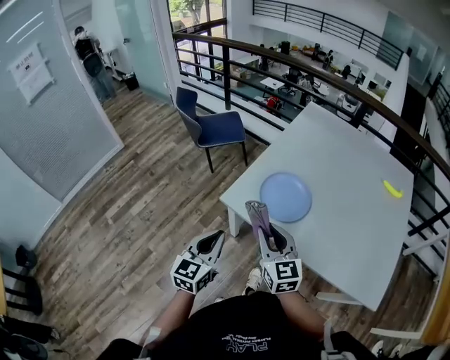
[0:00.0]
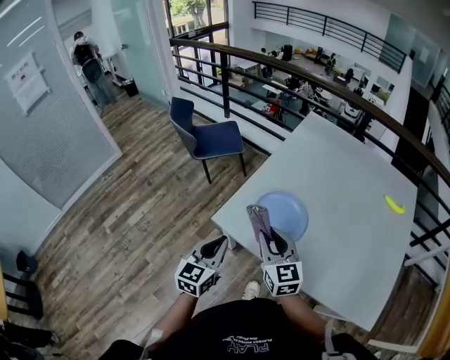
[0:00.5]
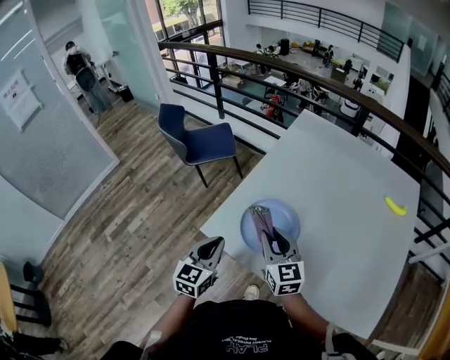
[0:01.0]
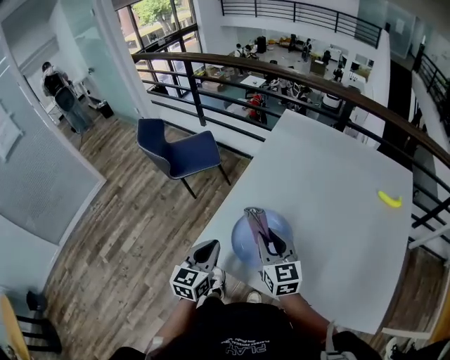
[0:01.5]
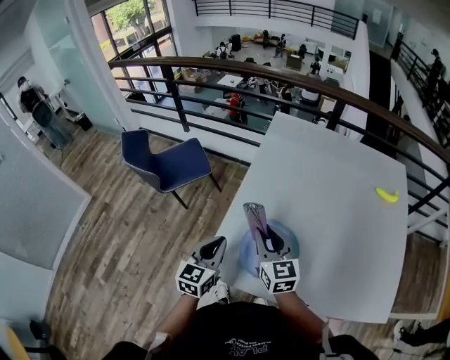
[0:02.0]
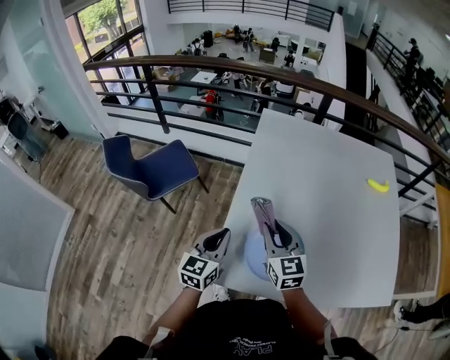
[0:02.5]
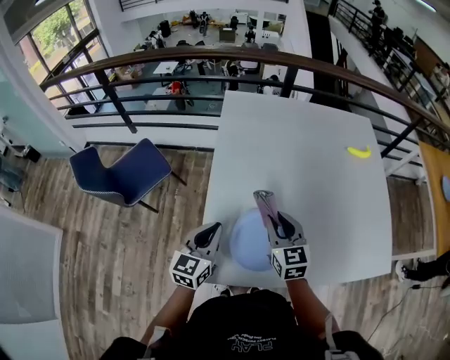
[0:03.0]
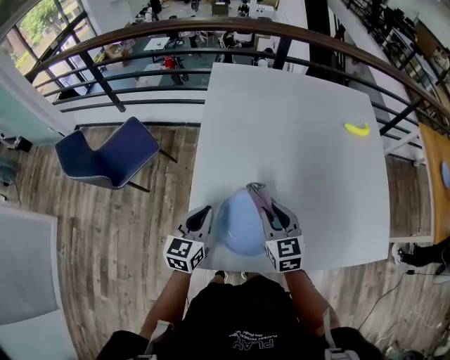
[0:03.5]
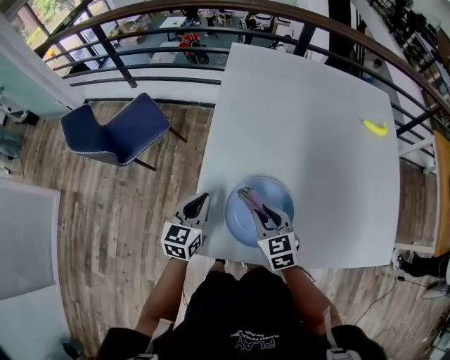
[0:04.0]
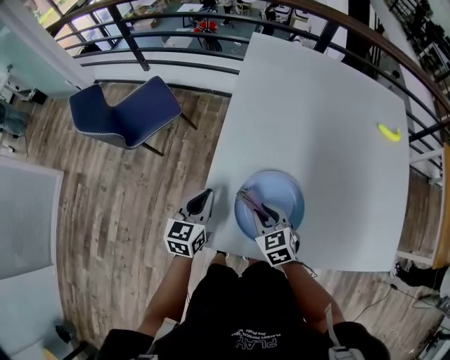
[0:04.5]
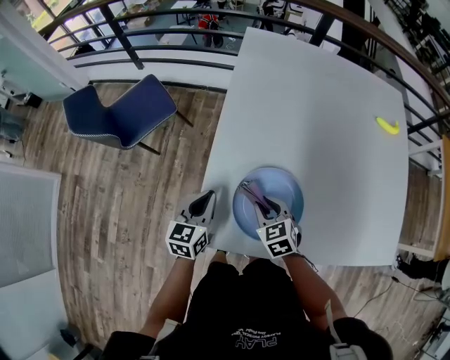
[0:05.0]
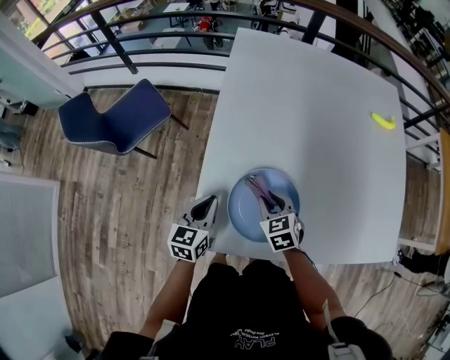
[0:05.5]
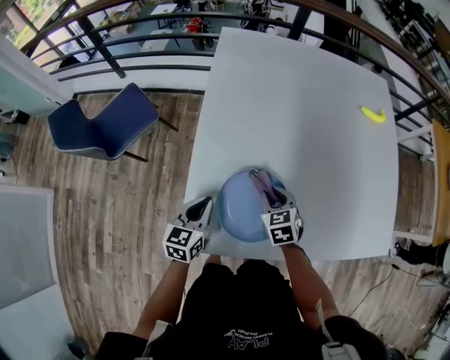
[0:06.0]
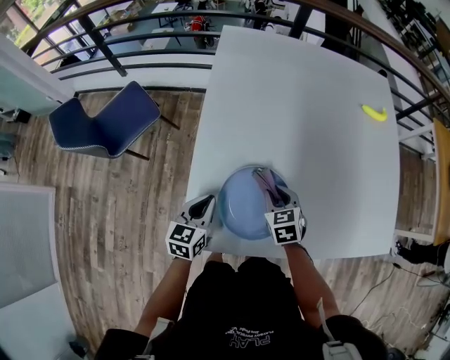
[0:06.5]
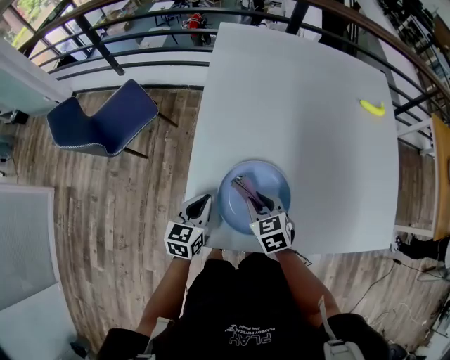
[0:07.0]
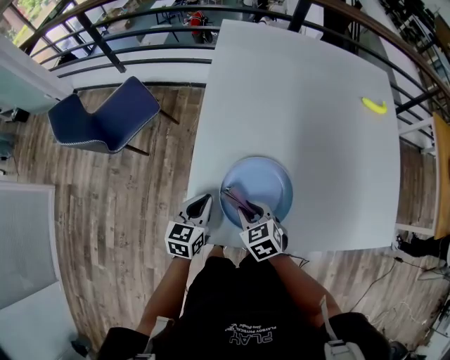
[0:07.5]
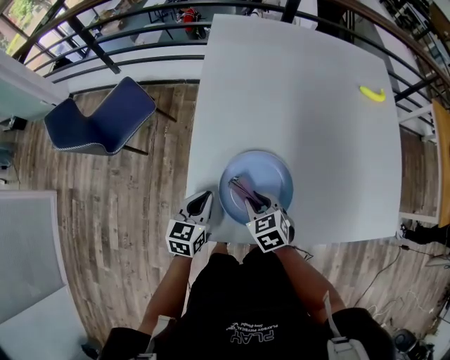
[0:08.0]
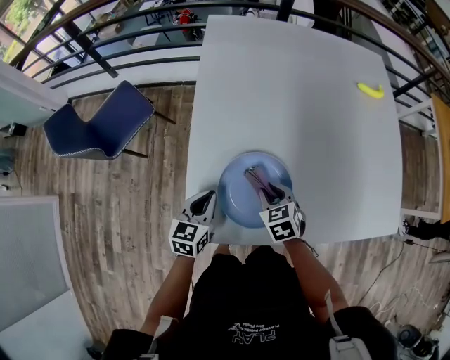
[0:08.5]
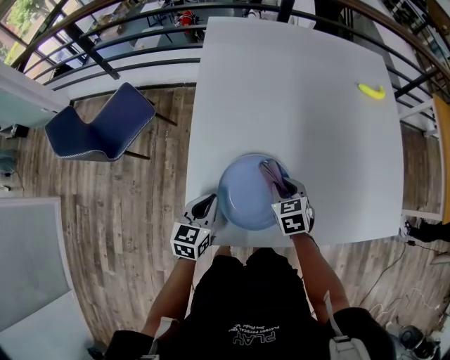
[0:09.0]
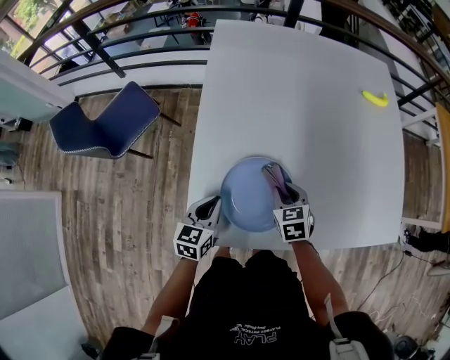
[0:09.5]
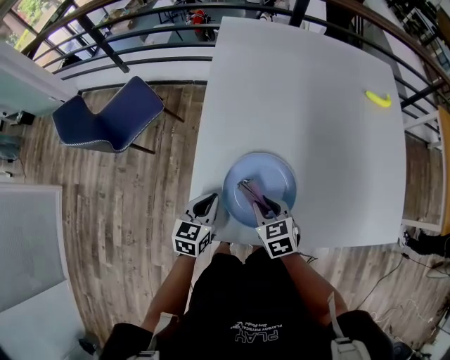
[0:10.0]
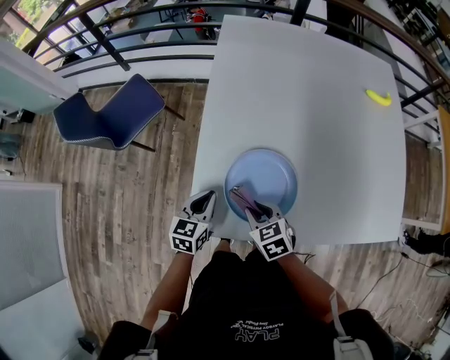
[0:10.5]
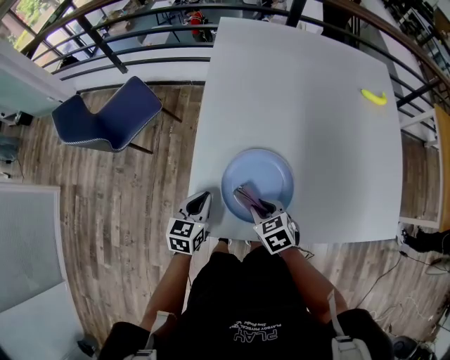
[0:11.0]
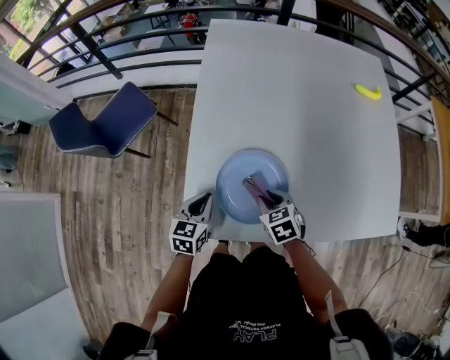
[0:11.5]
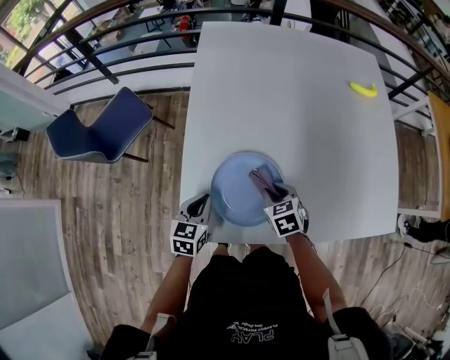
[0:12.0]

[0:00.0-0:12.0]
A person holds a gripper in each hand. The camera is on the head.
0:00.0 to 0:02.0: The two grippers go some 30 cm forward.
0:02.0 to 0:04.0: The right gripper moves downward, about 15 cm, and rotates roughly 30 degrees. Meanwhile the left gripper travels forward and downward by roughly 15 cm.
0:04.0 to 0:06.0: The left gripper ends up some 5 cm from where it was. Meanwhile the right gripper is displaced downward and to the right by about 10 cm.
0:06.0 to 0:08.0: The right gripper moves backward and to the left, about 10 cm.
0:08.0 to 0:10.0: The right gripper goes to the right and returns, roughly 10 cm each way.
0:10.0 to 0:12.0: The right gripper heads to the right, covering some 10 cm.

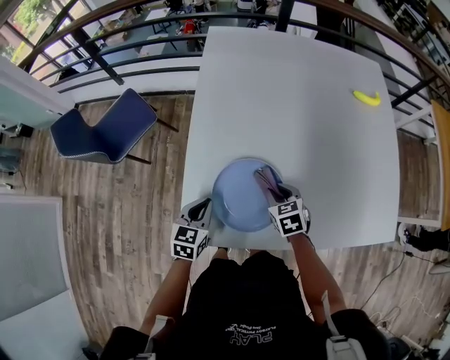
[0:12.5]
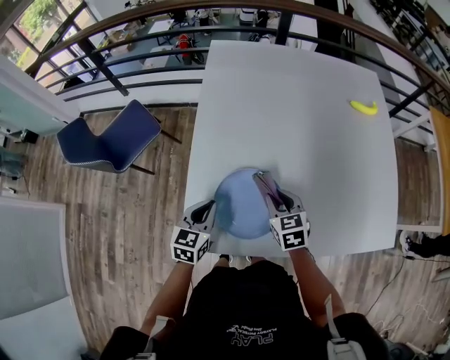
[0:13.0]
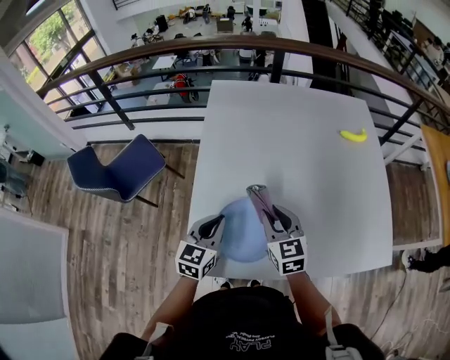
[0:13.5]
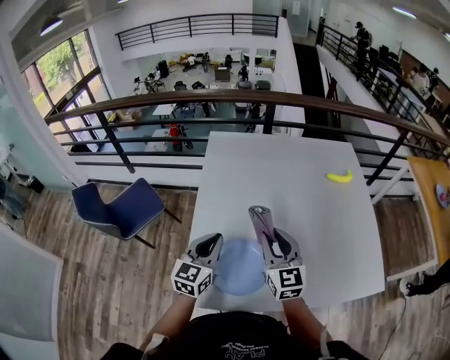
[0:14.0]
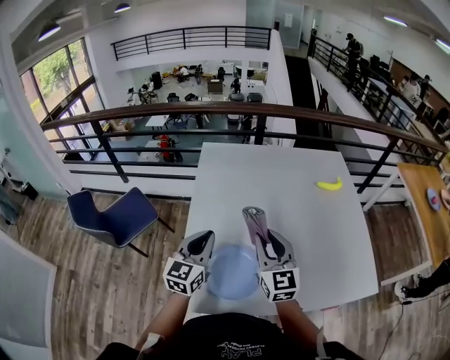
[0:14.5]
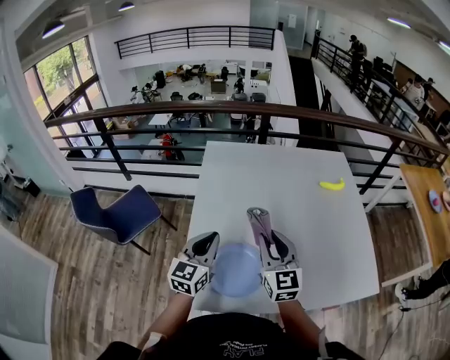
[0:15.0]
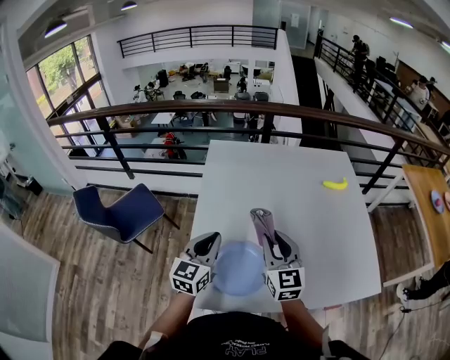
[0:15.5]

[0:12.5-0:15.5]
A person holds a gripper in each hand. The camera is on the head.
0:12.5 to 0:14.0: The grippers both shift upward by about 25 cm. The right gripper points its fingers some 50 degrees further upward. The left gripper turns by approximately 30 degrees.
0:14.0 to 0:15.5: The grippers make only small movements.

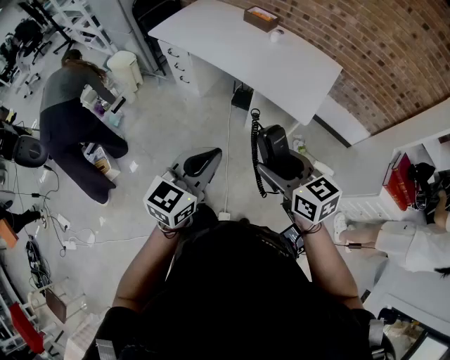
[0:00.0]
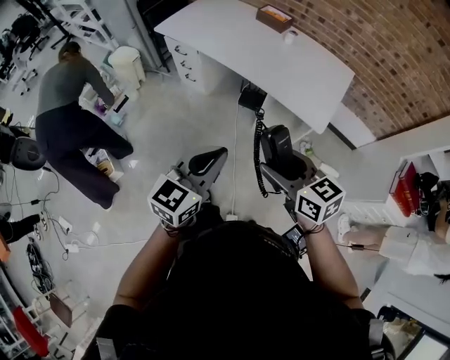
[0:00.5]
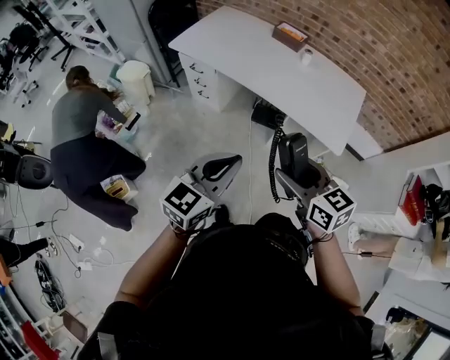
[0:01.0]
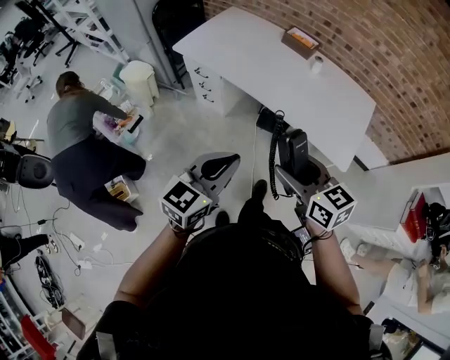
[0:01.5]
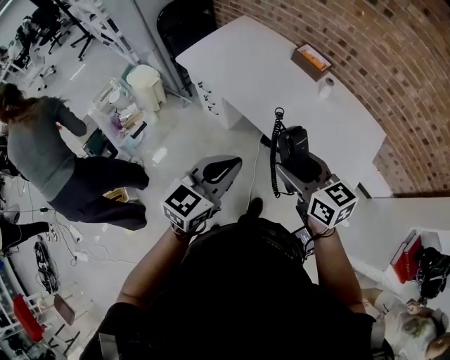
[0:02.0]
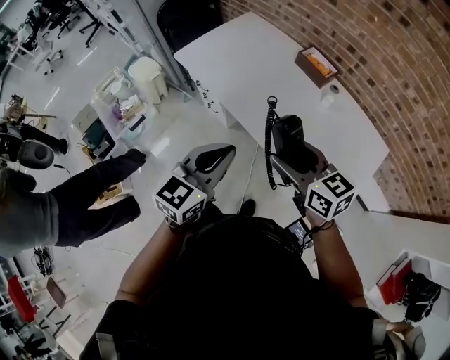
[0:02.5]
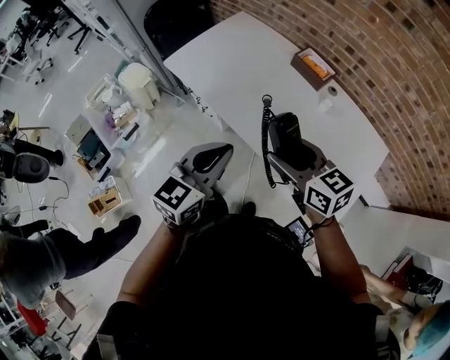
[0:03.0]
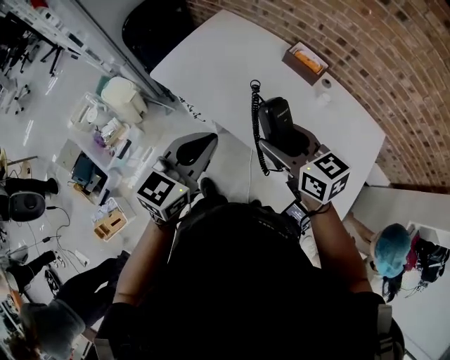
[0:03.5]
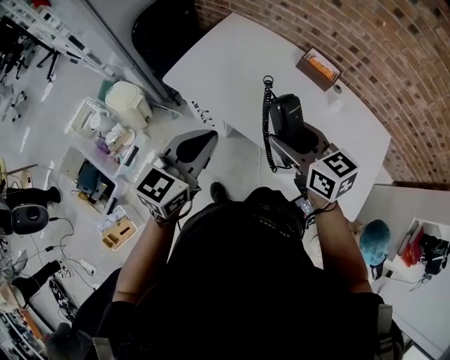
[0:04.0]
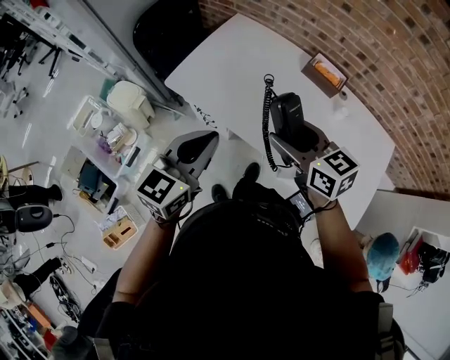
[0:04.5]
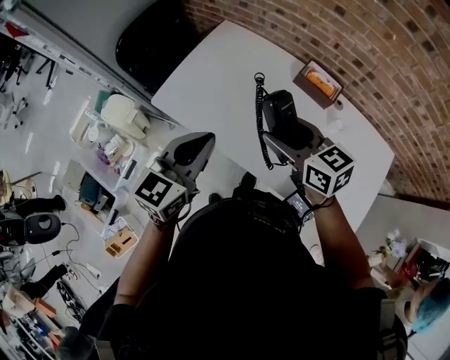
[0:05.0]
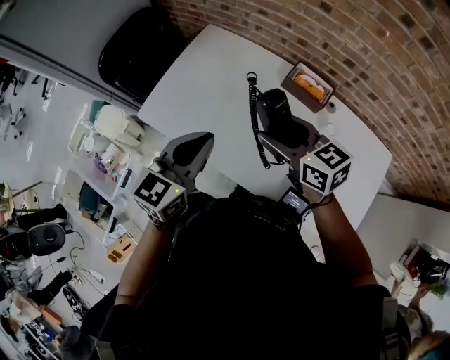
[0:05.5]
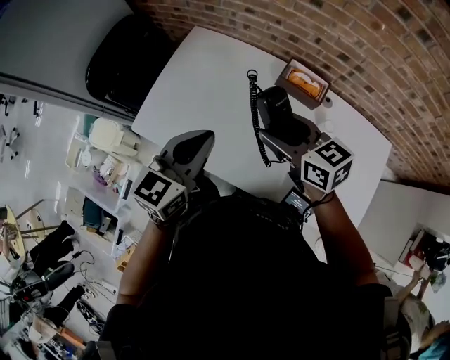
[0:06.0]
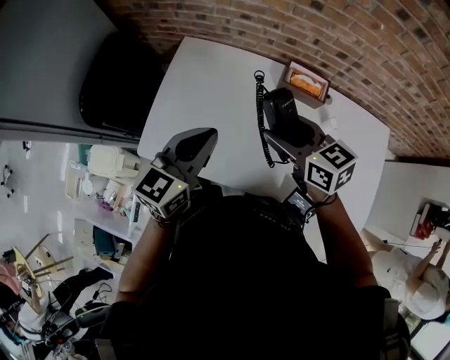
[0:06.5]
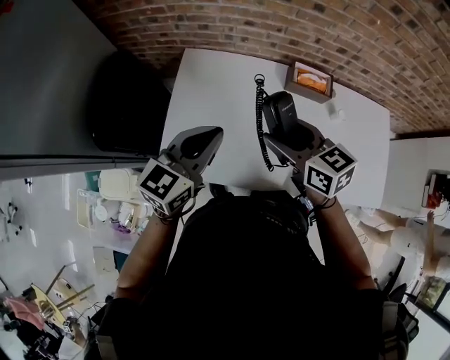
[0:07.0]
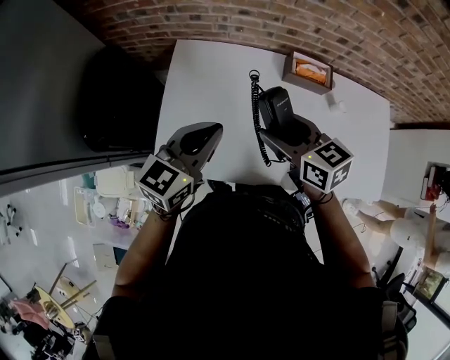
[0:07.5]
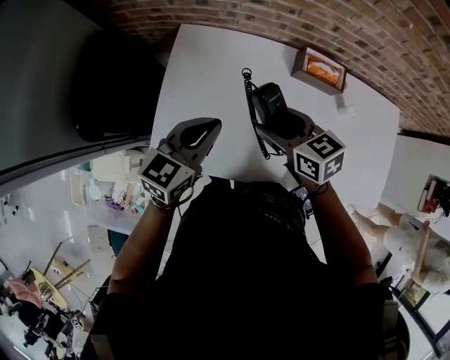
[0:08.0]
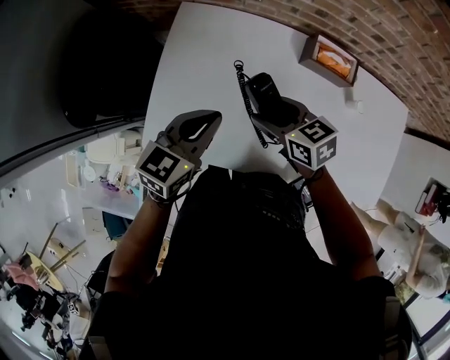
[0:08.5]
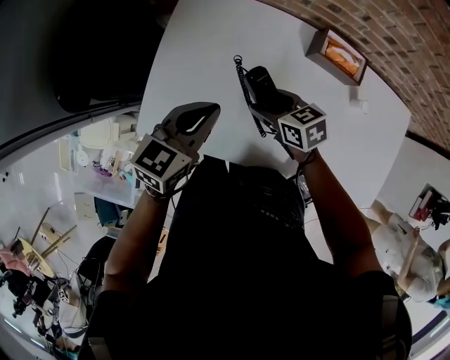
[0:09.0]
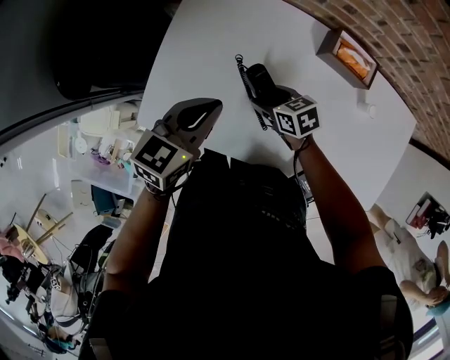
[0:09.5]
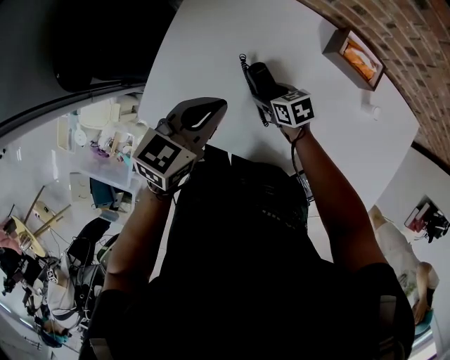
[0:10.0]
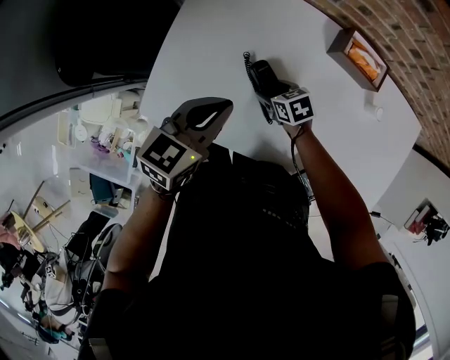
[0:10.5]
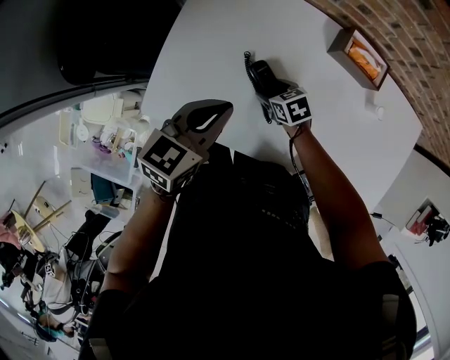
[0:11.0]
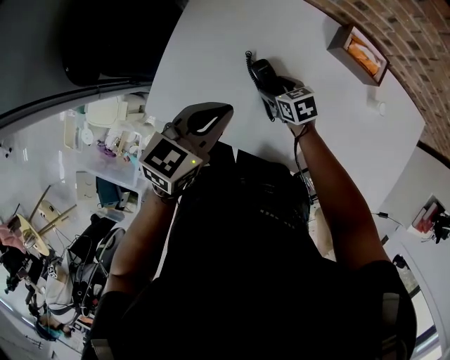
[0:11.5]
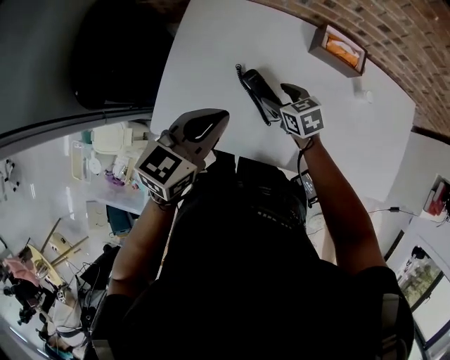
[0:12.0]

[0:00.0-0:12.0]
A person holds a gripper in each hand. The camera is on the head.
0:00.0 to 0:02.0: Both grippers travel together forward, about 35 cm.
0:02.0 to 0:04.0: The two grippers go roughly 30 cm forward and to the left.
0:04.0 to 0:06.0: Both grippers travel together forward and to the right, some 25 cm.
0:06.0 to 0:08.0: The right gripper travels to the left, downward and forward by approximately 20 cm; the left gripper is displaced forward, to the left and downward by some 20 cm, and changes its angle by roughly 20 degrees.
0:08.0 to 0:10.0: The left gripper shifts approximately 5 cm downward. The right gripper moves downward, about 25 cm, and turns by some 30 degrees.
0:10.0 to 0:12.0: The grippers both shift upward by about 5 cm.
